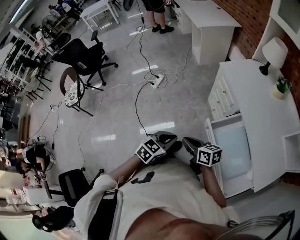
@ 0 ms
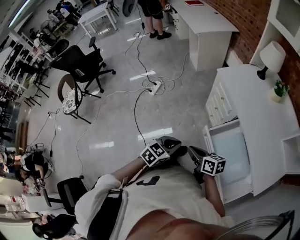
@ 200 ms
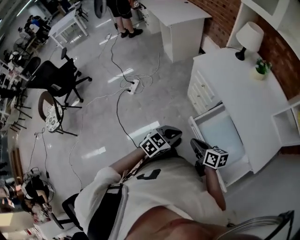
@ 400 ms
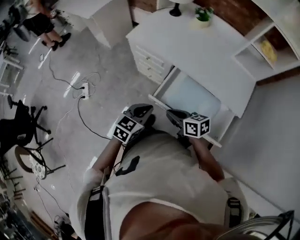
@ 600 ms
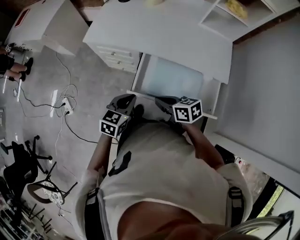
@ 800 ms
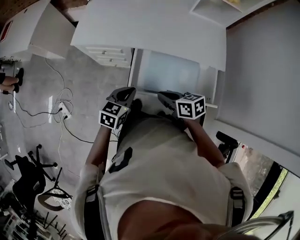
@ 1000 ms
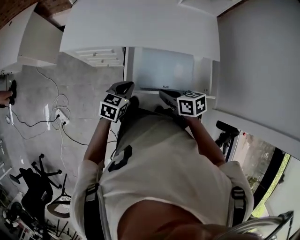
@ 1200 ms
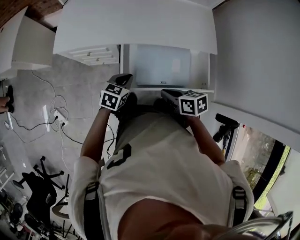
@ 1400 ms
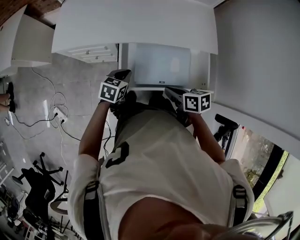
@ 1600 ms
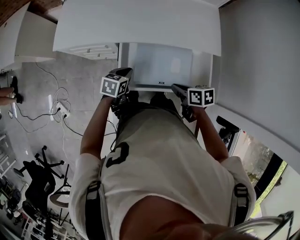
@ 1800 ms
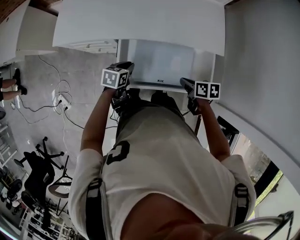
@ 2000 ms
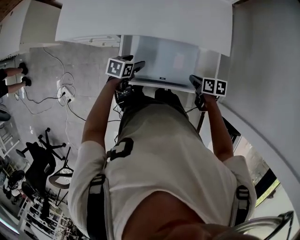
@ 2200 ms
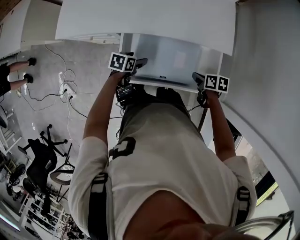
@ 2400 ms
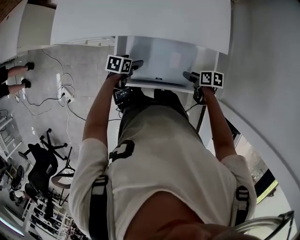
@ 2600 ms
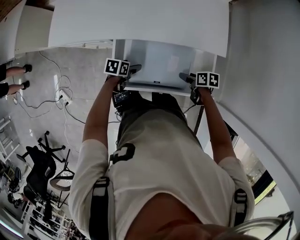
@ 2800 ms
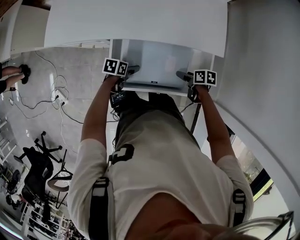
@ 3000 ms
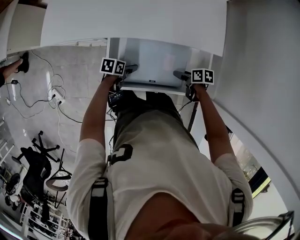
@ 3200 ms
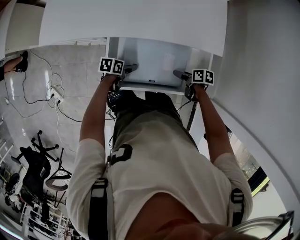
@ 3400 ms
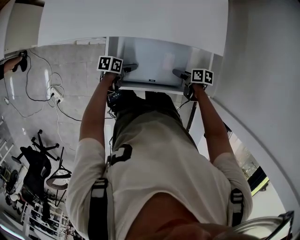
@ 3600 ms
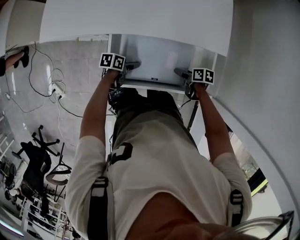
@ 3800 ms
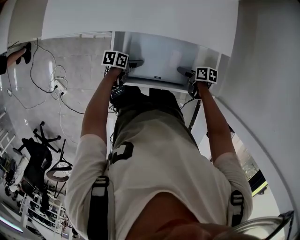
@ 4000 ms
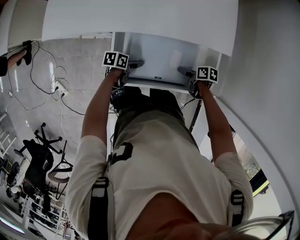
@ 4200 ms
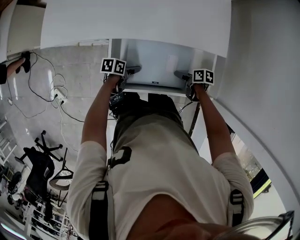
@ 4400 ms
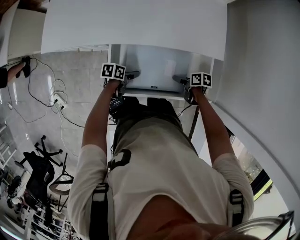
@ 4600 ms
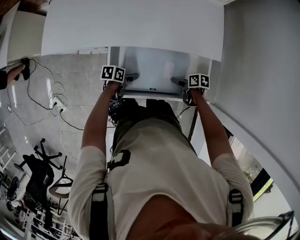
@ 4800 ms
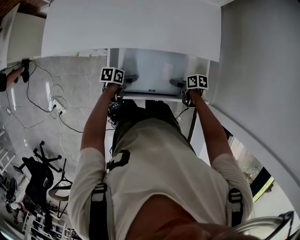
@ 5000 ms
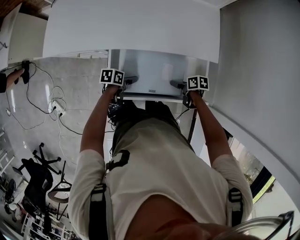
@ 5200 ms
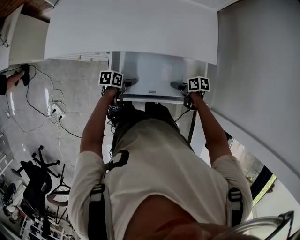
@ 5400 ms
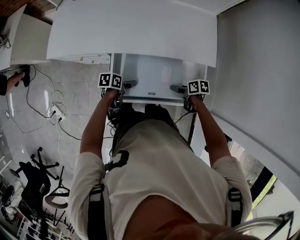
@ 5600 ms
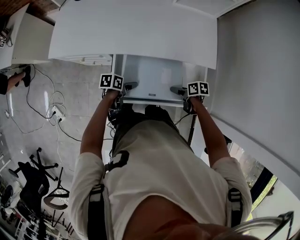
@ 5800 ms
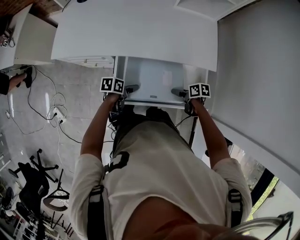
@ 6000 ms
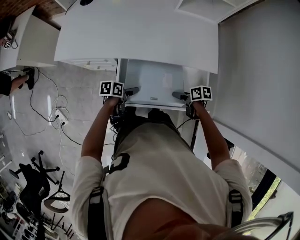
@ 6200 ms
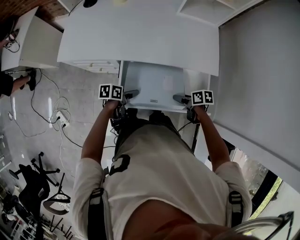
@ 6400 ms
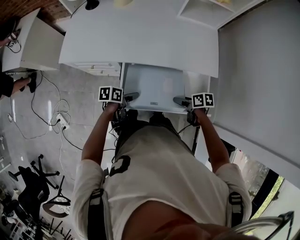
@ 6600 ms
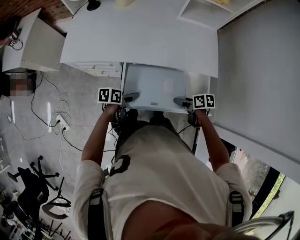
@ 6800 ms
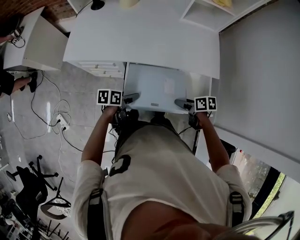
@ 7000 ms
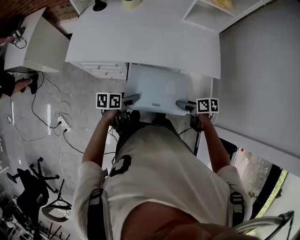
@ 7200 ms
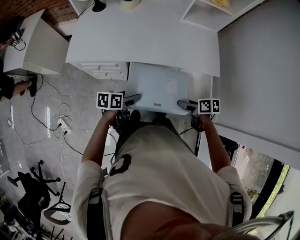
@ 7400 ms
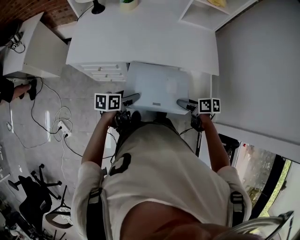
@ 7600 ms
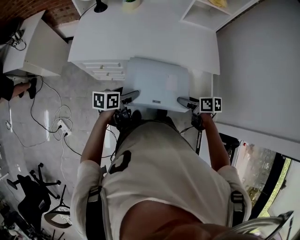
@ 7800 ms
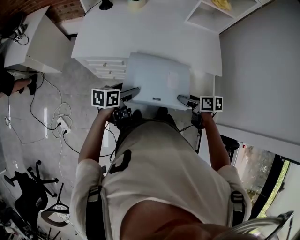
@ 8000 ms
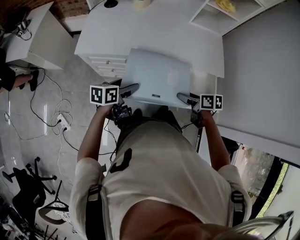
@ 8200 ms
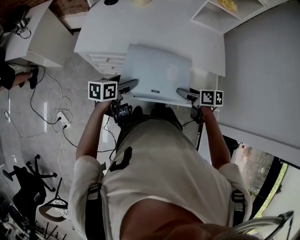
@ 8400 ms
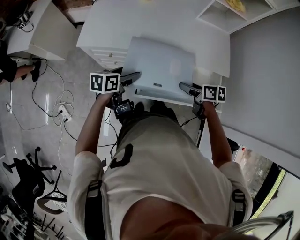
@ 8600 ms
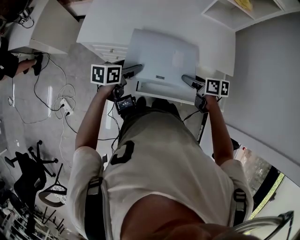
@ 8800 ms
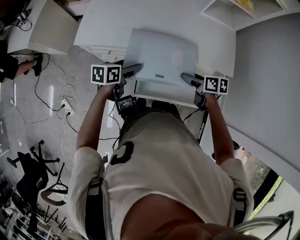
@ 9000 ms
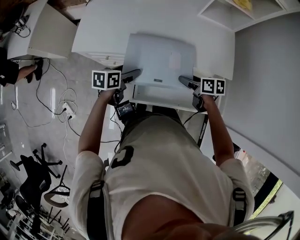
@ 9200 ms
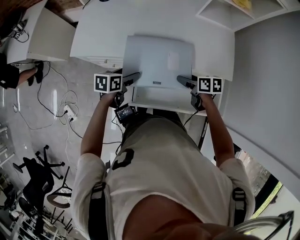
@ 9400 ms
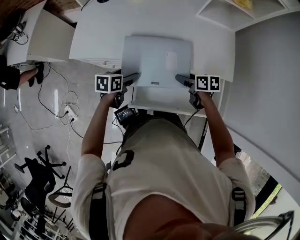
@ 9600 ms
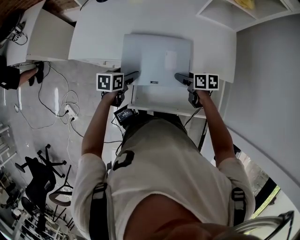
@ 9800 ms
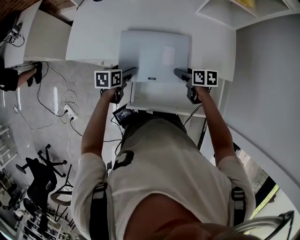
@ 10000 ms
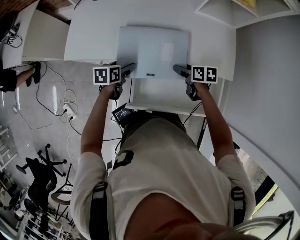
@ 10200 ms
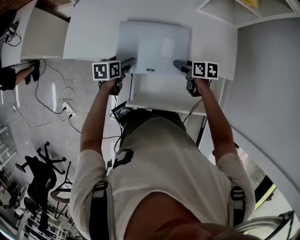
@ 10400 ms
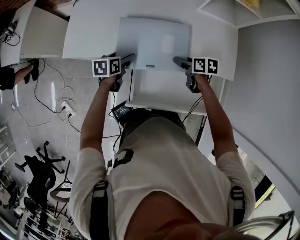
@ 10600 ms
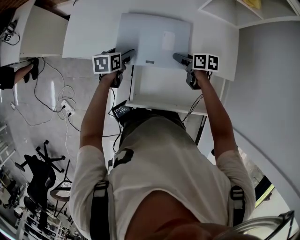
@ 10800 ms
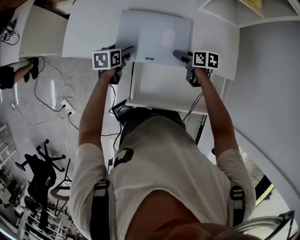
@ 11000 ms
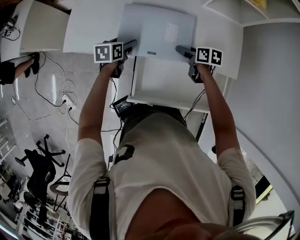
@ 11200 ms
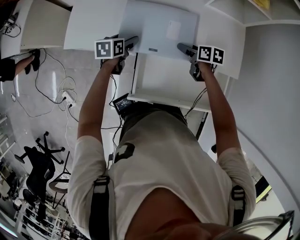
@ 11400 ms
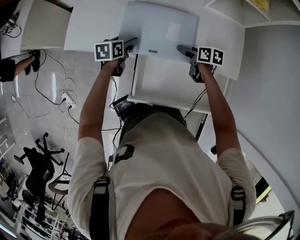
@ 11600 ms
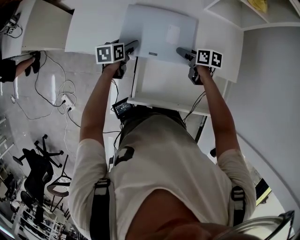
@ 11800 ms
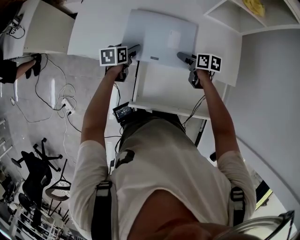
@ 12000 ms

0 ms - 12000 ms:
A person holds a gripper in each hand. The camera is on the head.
0 ms - 1600 ms: The right gripper moves roughly 25 cm, and changes its angle by some 70 degrees, while the left gripper moves approximately 30 cm, and changes its angle by roughly 60 degrees.
1600 ms - 3000 ms: The left gripper moves downward, some 15 cm, rotates approximately 30 degrees, and opens its fingers, while the right gripper shifts by some 25 cm, and opens its fingers.
3000 ms - 4400 ms: The grippers stay close to where they were, moving slightly.
4400 ms - 6000 ms: The grippers both shift upward by approximately 5 cm.
6000 ms - 7600 ms: Both grippers move upward, roughly 10 cm.
7600 ms - 9000 ms: Both grippers travel together forward, some 10 cm.
9000 ms - 10400 ms: The right gripper shifts roughly 15 cm forward, while the left gripper shifts roughly 15 cm forward and downward.
10400 ms - 12000 ms: The two grippers go roughly 5 cm forward.

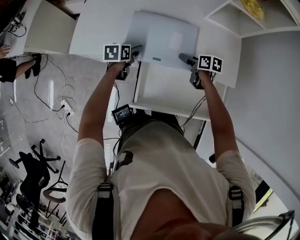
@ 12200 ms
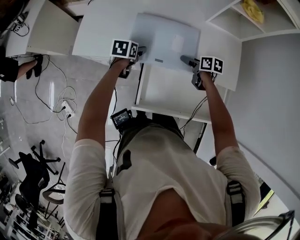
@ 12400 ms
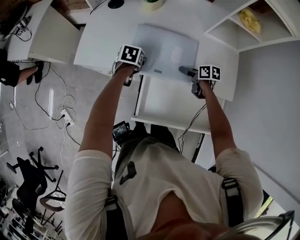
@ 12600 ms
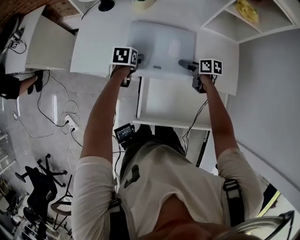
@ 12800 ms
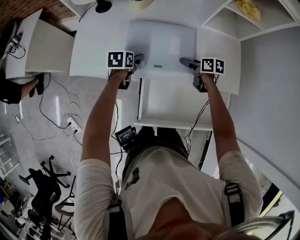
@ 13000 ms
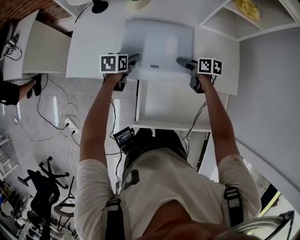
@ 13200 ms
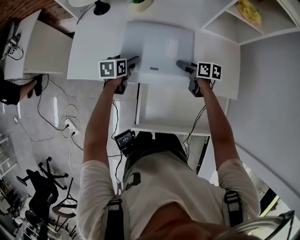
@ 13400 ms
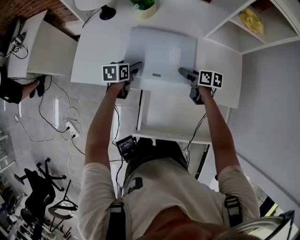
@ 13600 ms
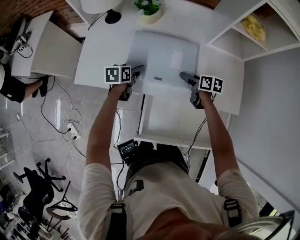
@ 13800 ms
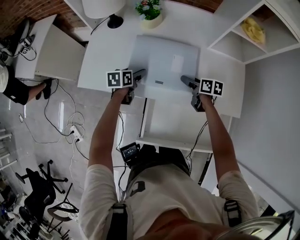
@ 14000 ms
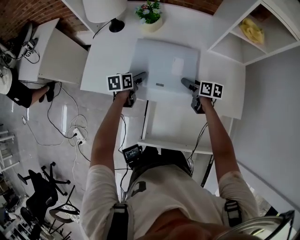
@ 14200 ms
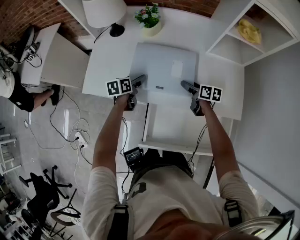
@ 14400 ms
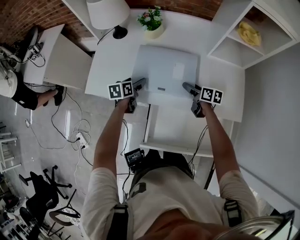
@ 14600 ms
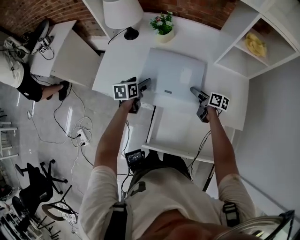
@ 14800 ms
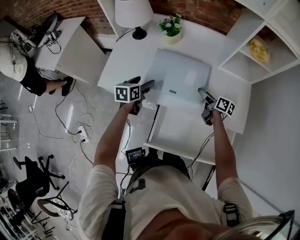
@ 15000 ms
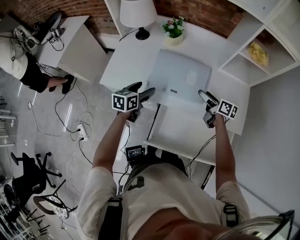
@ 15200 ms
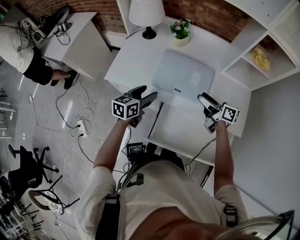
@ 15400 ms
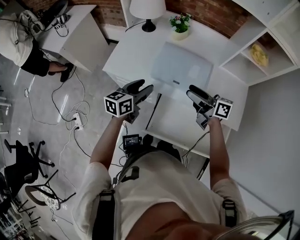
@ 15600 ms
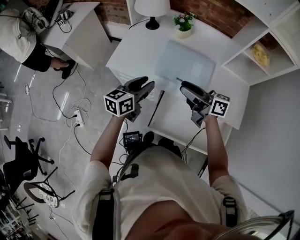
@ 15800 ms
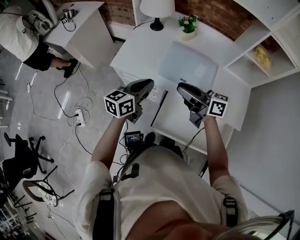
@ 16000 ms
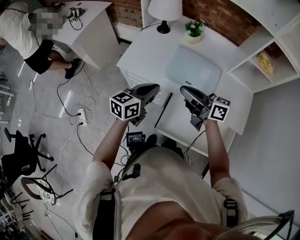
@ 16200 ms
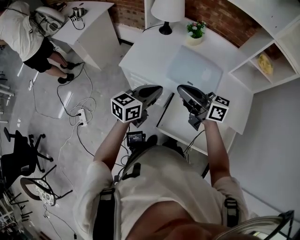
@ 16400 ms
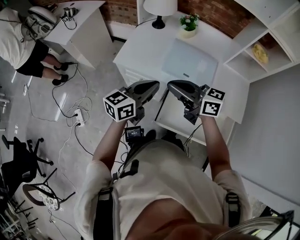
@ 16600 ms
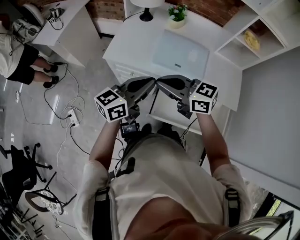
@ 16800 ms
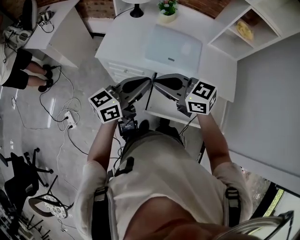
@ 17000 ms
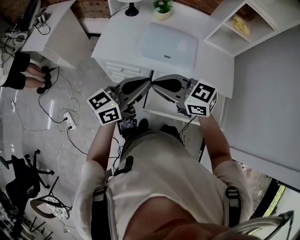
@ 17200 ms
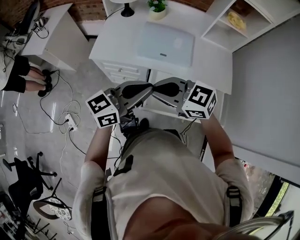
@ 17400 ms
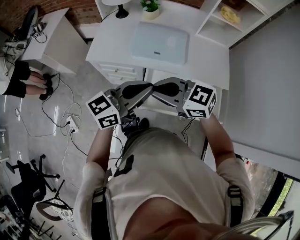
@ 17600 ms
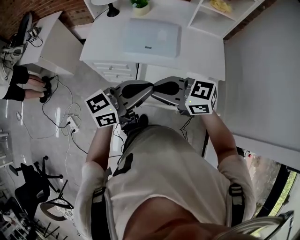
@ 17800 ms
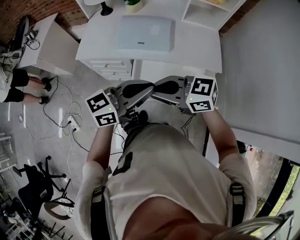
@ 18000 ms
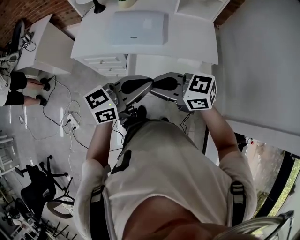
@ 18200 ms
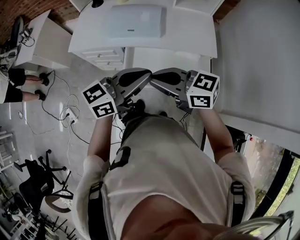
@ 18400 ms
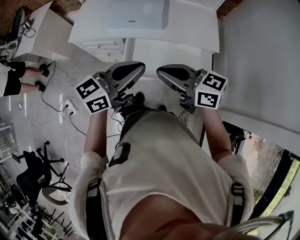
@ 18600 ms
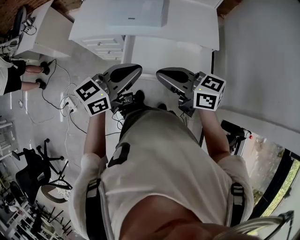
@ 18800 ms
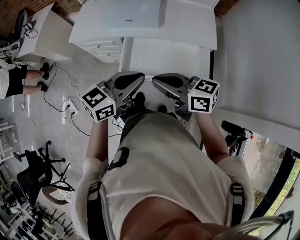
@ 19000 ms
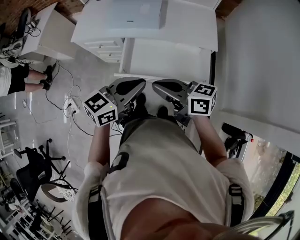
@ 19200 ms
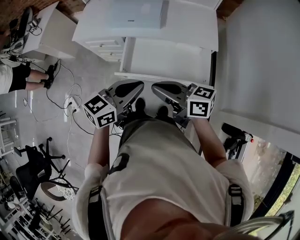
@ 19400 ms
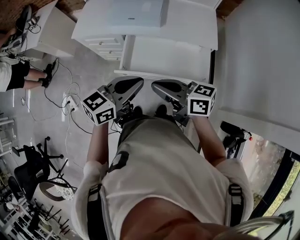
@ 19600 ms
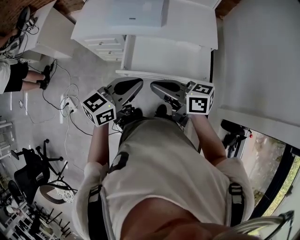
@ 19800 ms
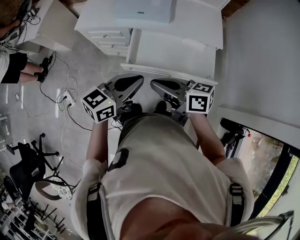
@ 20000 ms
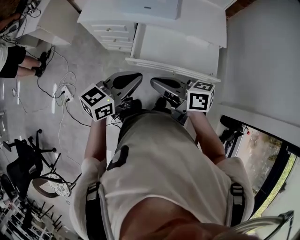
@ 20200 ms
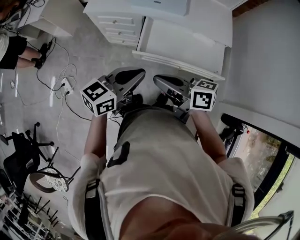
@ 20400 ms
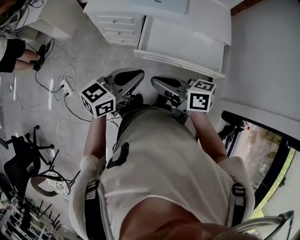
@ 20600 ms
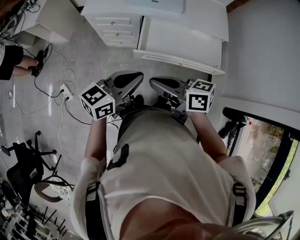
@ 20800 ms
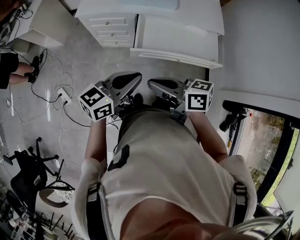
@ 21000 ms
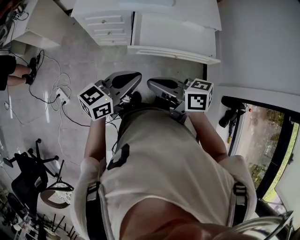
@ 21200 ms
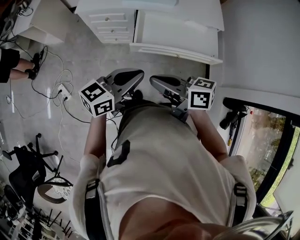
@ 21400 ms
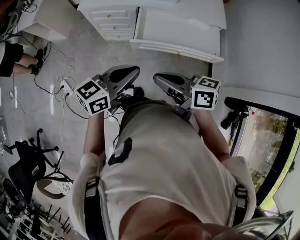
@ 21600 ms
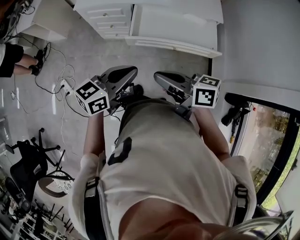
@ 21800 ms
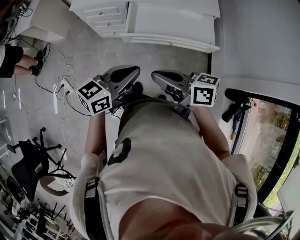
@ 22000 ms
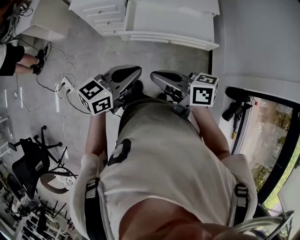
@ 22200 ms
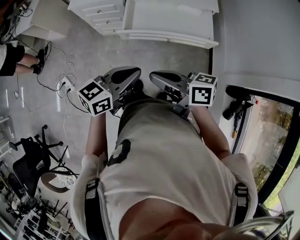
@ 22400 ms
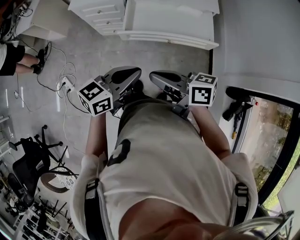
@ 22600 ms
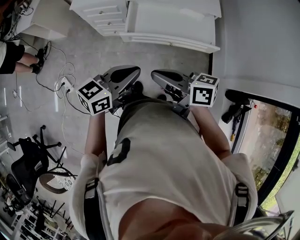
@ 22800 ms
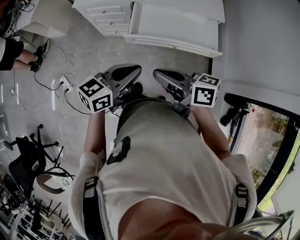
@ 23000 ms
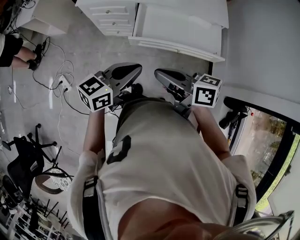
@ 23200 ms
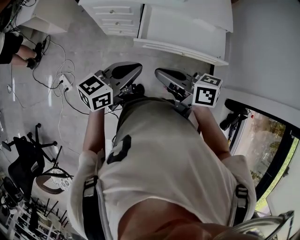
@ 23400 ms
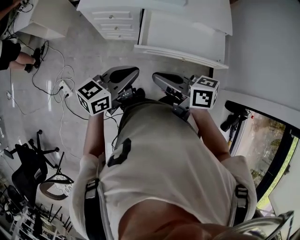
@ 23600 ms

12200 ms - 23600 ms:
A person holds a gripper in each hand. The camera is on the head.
12200 ms - 13600 ms: The two grippers go about 5 cm forward.
13600 ms - 15000 ms: The left gripper shifts some 10 cm upward.
15000 ms - 16400 ms: The left gripper goes some 25 cm backward and upward, turns by some 30 degrees, and closes up; the right gripper heads to the left, upward and backward, covering roughly 40 cm, changes its angle by approximately 50 degrees, and closes up.
16400 ms - 17800 ms: The left gripper shifts by approximately 25 cm, and turns by approximately 30 degrees. Meanwhile the right gripper ends up about 20 cm from where it was, and changes its angle by approximately 30 degrees.
17800 ms - 19400 ms: The right gripper shifts by some 20 cm, and changes its angle by approximately 30 degrees, while the left gripper changes place by roughly 15 cm.
19400 ms - 20800 ms: Both grippers travel together to the left, approximately 20 cm.
20800 ms - 22200 ms: The left gripper heads backward and to the right, covering some 10 cm. The right gripper goes roughly 15 cm to the right and backward.
22200 ms - 23600 ms: The right gripper shifts some 15 cm forward and to the left, while the left gripper heads to the left and forward, covering approximately 15 cm.
